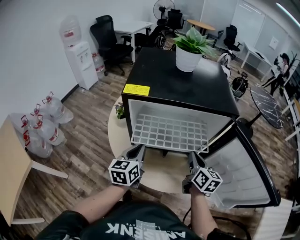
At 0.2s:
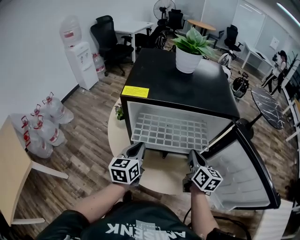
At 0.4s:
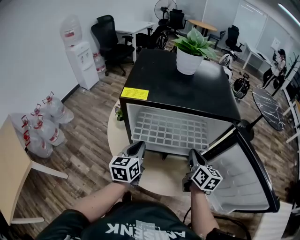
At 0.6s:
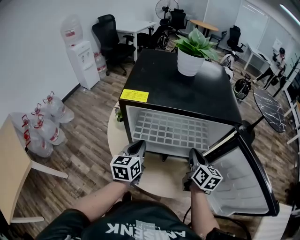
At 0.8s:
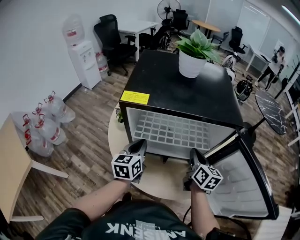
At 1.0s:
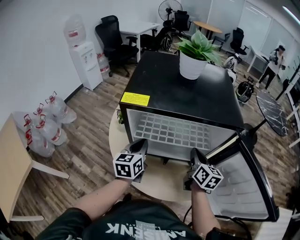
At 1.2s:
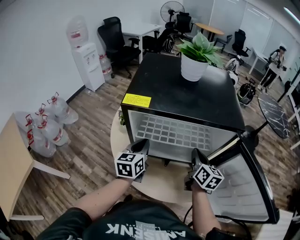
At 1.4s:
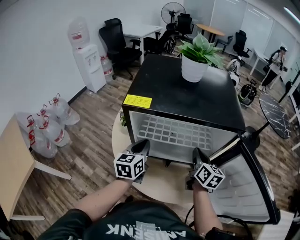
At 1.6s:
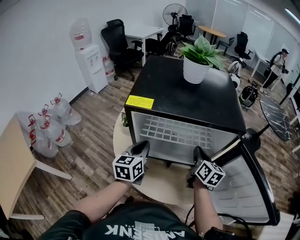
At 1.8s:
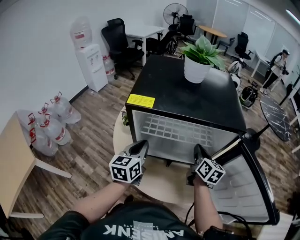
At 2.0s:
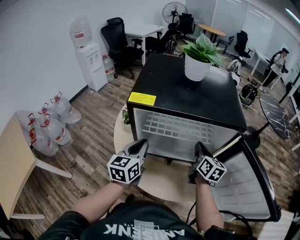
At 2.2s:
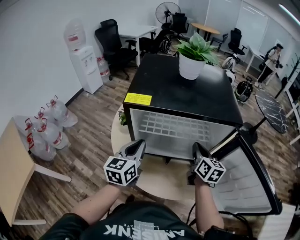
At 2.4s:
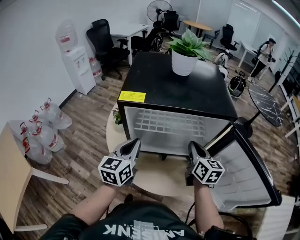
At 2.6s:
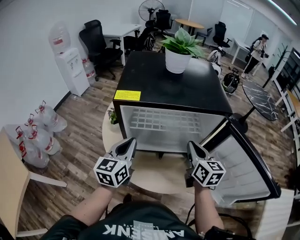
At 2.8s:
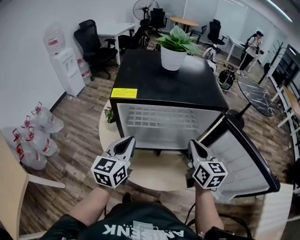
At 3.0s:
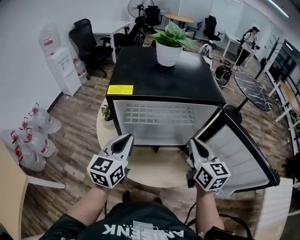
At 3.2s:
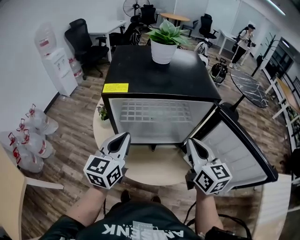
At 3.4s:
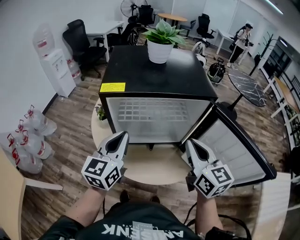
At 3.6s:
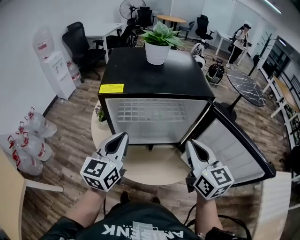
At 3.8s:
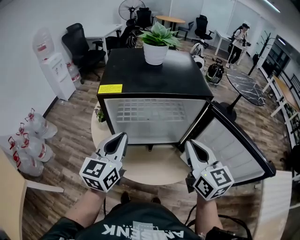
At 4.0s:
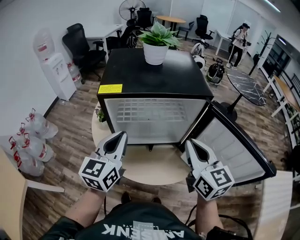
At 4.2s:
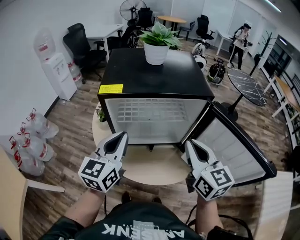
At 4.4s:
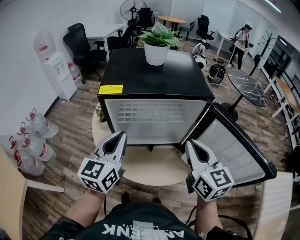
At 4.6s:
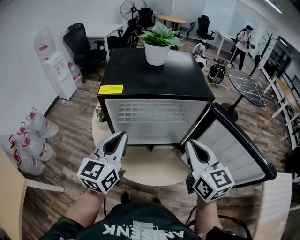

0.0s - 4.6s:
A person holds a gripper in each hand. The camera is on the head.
0.0s - 1.6s: The grippers both shift forward by roughly 10 cm.
1.6s - 3.0s: The right gripper goes roughly 15 cm backward and upward. Meanwhile the left gripper heads upward and backward, covering approximately 10 cm.
3.0s - 4.6s: The left gripper moves upward, about 5 cm. Meanwhile the right gripper heads upward and backward, covering approximately 10 cm.

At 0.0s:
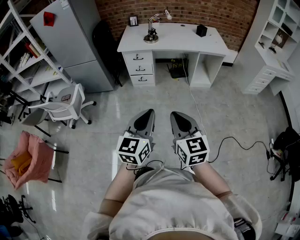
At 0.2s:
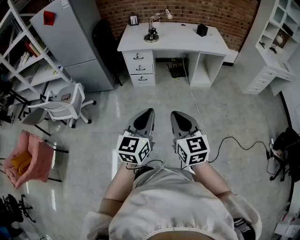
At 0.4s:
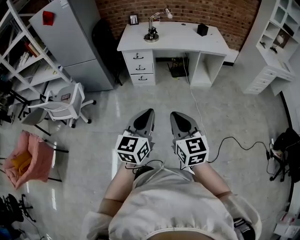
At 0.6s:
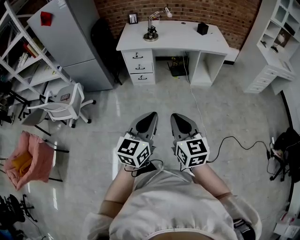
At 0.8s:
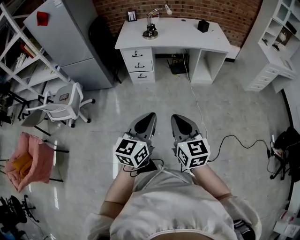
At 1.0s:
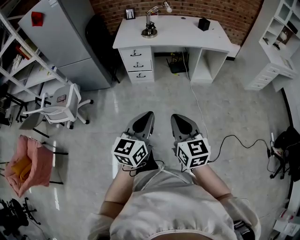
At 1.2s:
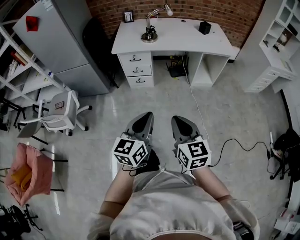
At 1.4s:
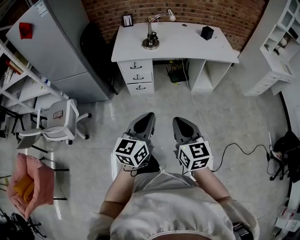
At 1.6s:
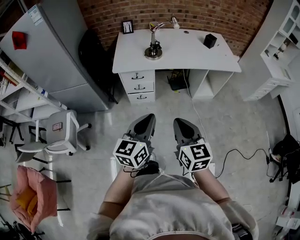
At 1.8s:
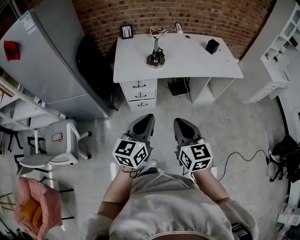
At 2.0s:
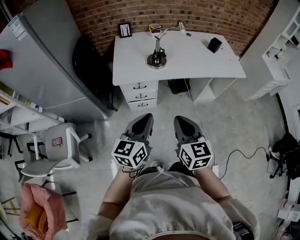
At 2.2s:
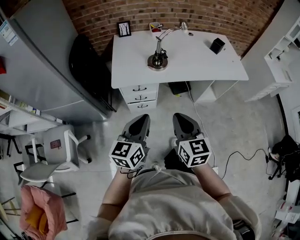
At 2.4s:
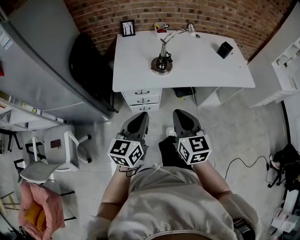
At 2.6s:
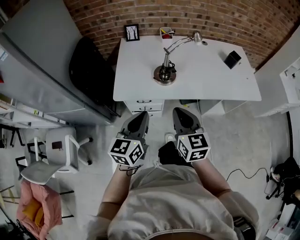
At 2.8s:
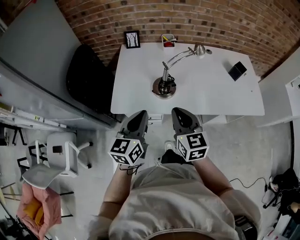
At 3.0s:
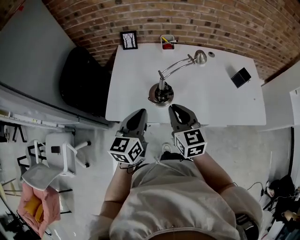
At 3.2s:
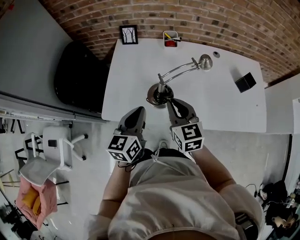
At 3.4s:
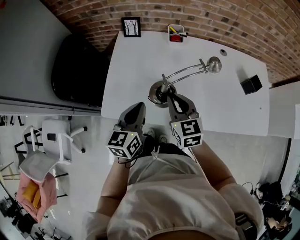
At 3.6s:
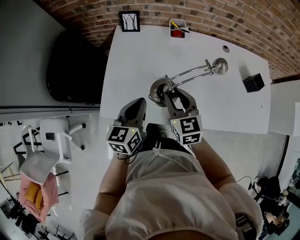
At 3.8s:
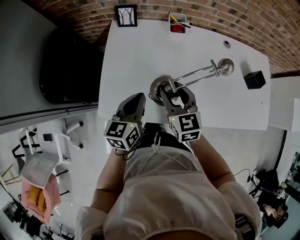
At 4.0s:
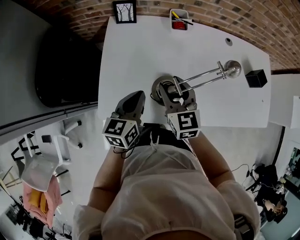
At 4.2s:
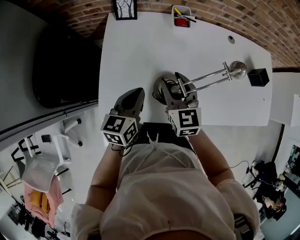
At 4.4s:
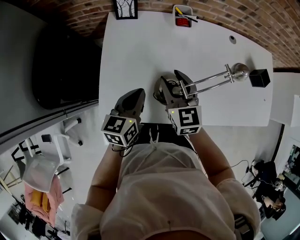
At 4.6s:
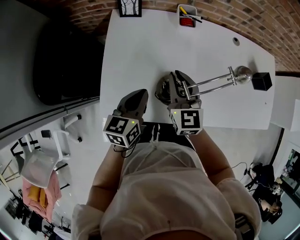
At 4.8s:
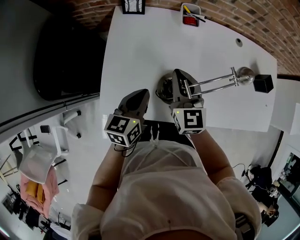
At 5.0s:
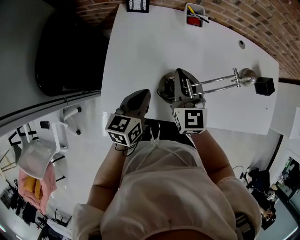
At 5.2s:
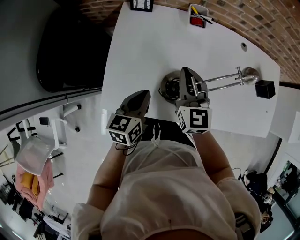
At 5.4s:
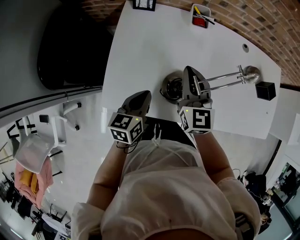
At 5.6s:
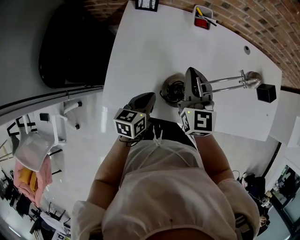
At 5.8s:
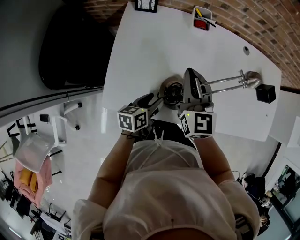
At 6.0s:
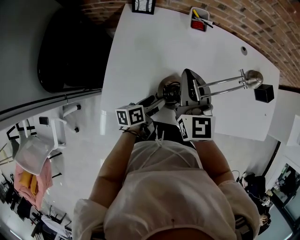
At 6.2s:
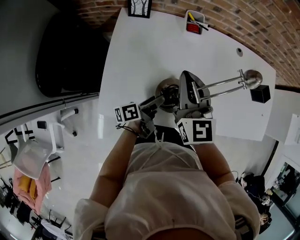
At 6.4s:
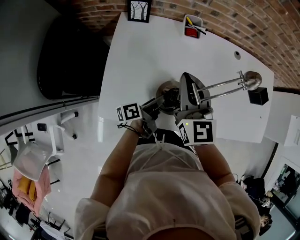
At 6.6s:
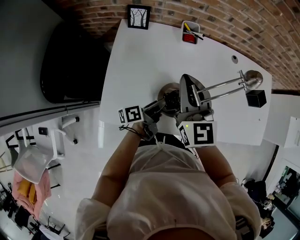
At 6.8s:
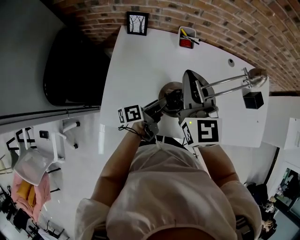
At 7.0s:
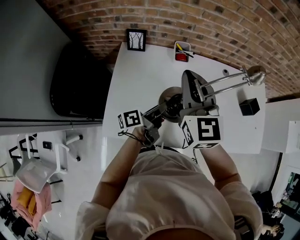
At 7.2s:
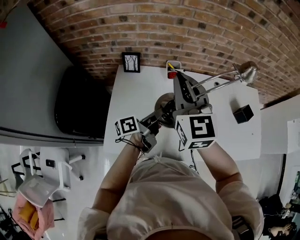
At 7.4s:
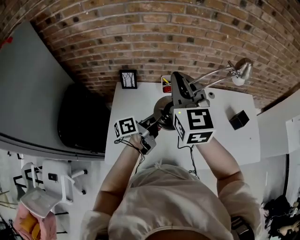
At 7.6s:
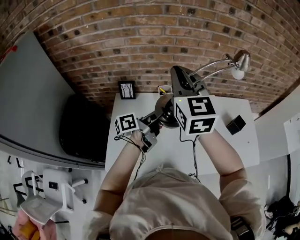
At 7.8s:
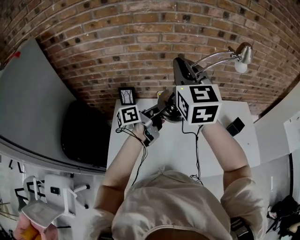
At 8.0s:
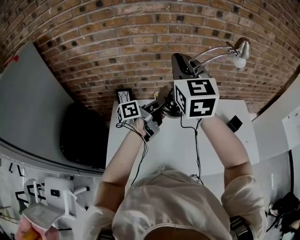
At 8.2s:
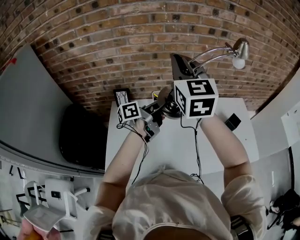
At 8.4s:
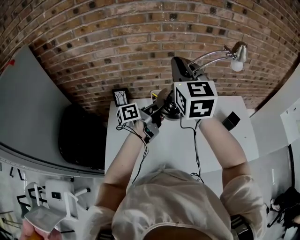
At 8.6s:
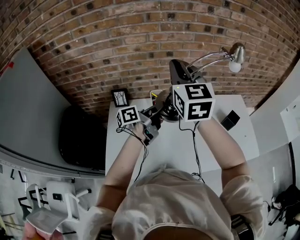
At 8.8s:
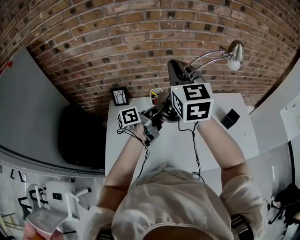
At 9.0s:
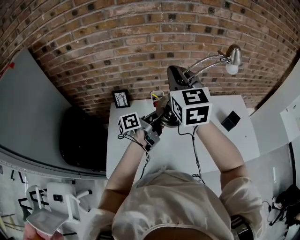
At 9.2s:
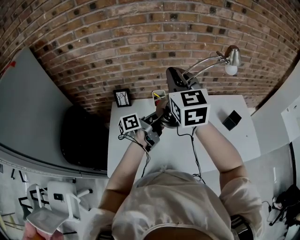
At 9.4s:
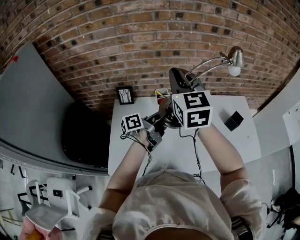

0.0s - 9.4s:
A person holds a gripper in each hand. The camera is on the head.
0.0s - 1.6s: The grippers both shift forward by about 30 cm.
1.6s - 3.2s: The two grippers travel together, forward, about 60 cm.
3.2s - 4.8s: The left gripper shifts about 15 cm downward and forward, while the right gripper is displaced forward and to the left by some 15 cm, and opens, then closes again.
4.8s - 6.2s: The right gripper moves upward, roughly 5 cm. Meanwhile the left gripper goes about 10 cm downward and to the right, rolls counterclockwise, seen from behind, by roughly 50 degrees, and opens.
6.2s - 7.8s: The left gripper heads upward and forward, covering roughly 35 cm, changes its angle by about 20 degrees, and closes its fingers. The right gripper is displaced upward by some 30 cm.
7.8s - 9.4s: The left gripper changes place by some 5 cm.

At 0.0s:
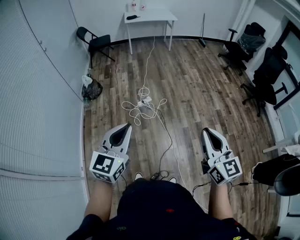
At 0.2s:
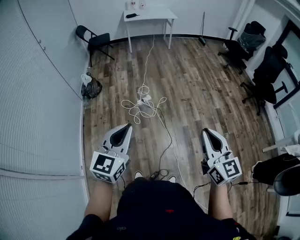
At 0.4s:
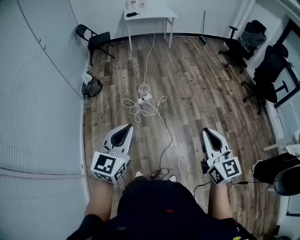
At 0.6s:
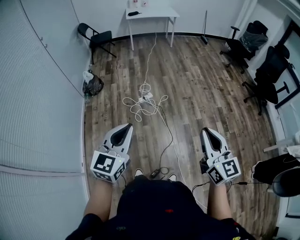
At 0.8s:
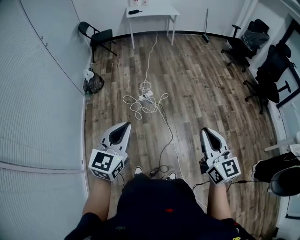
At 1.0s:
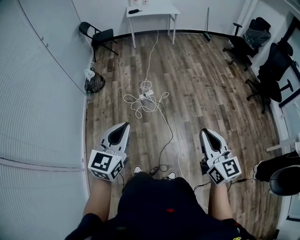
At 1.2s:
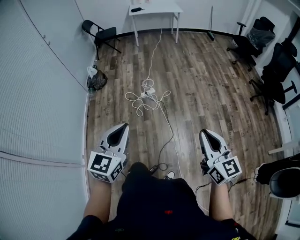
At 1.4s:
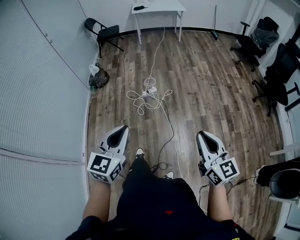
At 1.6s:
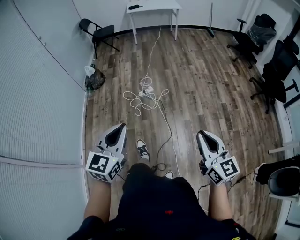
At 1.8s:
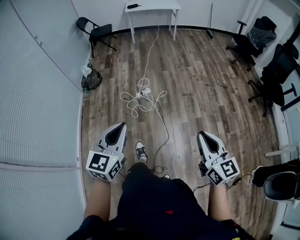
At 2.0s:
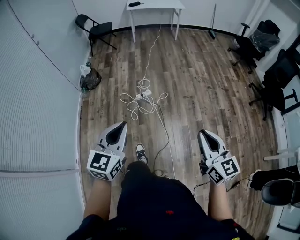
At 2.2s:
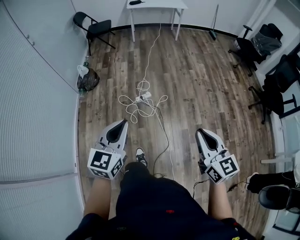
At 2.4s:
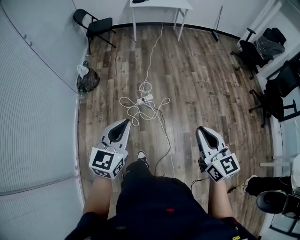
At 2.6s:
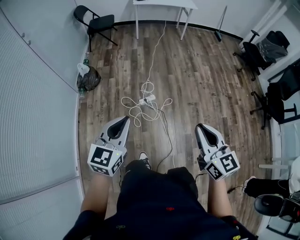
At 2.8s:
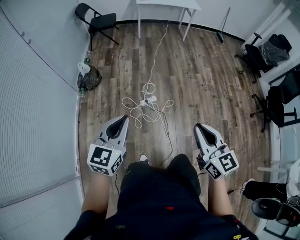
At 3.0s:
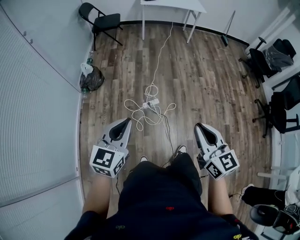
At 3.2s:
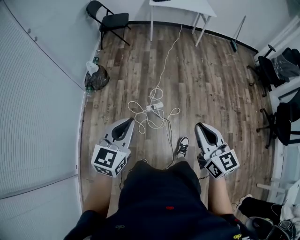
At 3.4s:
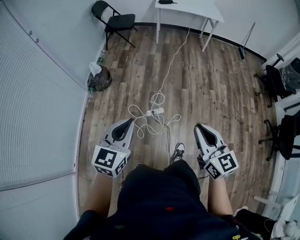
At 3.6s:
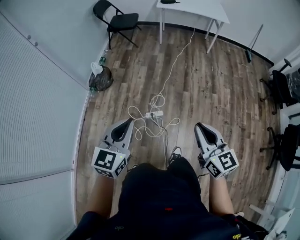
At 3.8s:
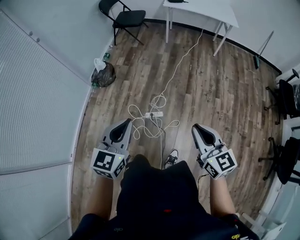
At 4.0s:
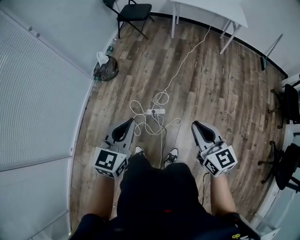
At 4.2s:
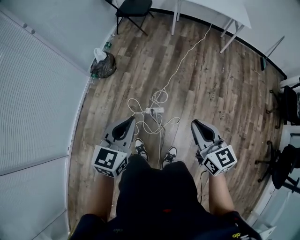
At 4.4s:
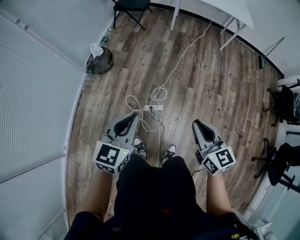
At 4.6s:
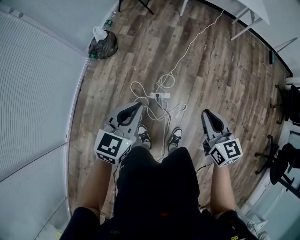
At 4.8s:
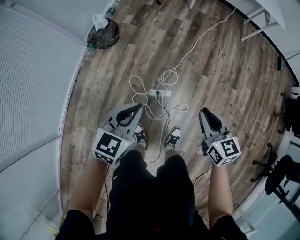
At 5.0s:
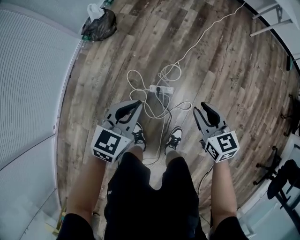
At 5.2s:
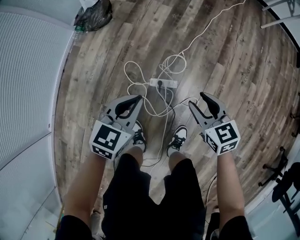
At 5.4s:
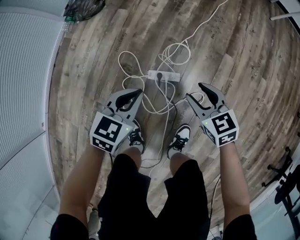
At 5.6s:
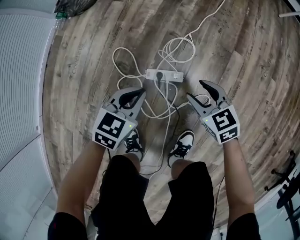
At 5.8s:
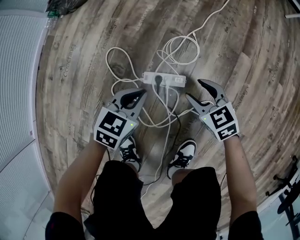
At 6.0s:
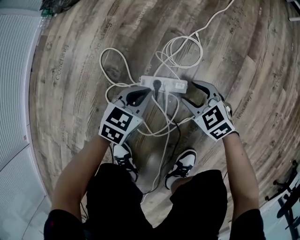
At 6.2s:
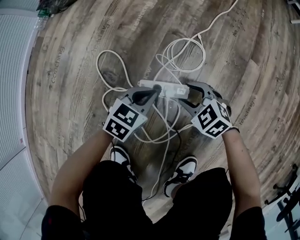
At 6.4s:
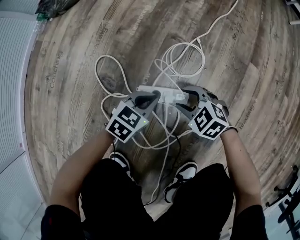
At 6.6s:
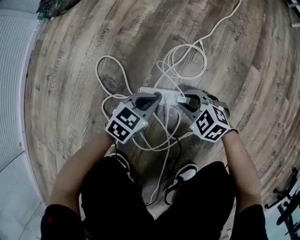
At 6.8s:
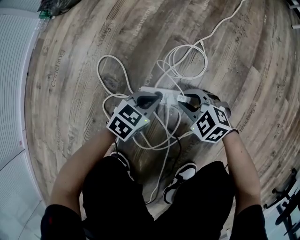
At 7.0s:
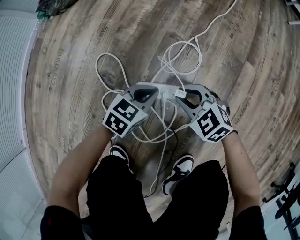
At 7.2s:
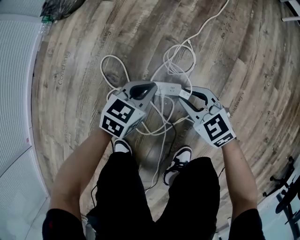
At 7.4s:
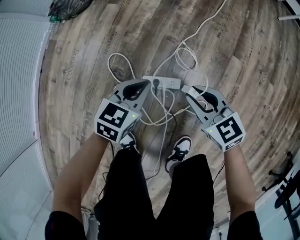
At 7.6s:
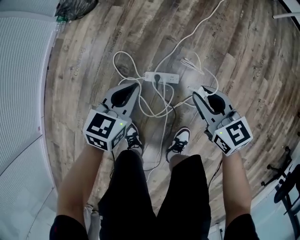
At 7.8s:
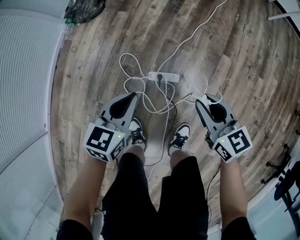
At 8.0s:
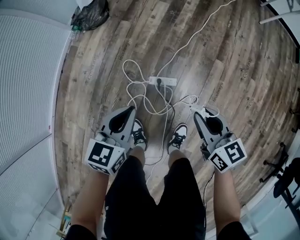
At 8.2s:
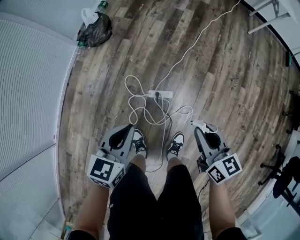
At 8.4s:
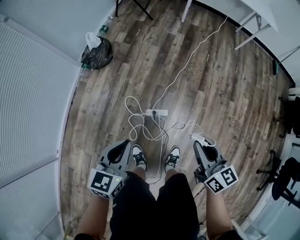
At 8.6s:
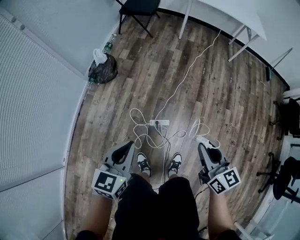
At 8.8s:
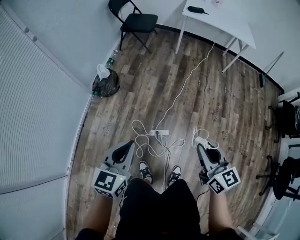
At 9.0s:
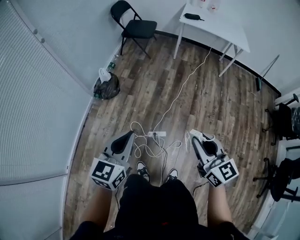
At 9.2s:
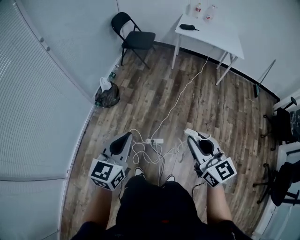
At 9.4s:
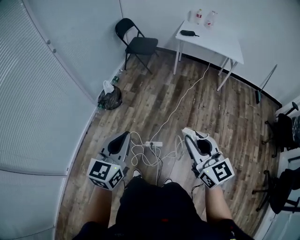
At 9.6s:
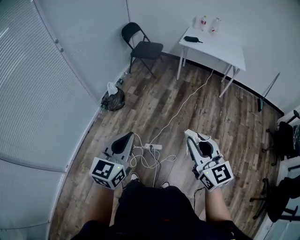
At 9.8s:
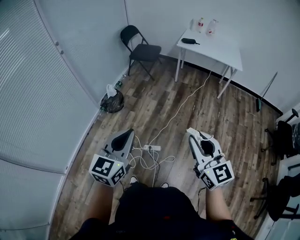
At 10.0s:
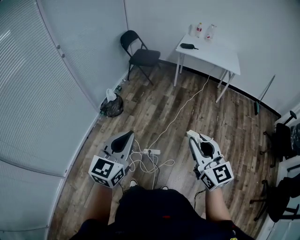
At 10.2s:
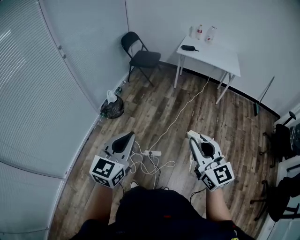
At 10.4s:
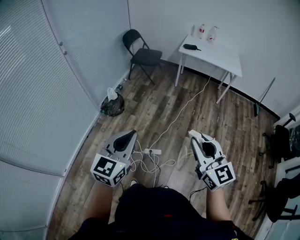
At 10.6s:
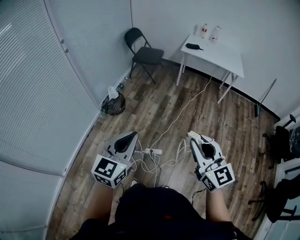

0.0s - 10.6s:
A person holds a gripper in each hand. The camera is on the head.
0.0s - 1.6s: Both grippers move to the right and downward, approximately 10 cm.
1.6s - 3.0s: Both grippers are carried forward and to the left, some 40 cm.
3.0s - 4.6s: The left gripper is displaced forward, downward and to the right by some 35 cm. The right gripper moves forward and downward, some 40 cm, and turns by some 20 degrees.
4.6s - 6.0s: The two grippers go about 80 cm downward. The left gripper rotates about 20 degrees, while the right gripper changes its angle by some 50 degrees, and opens its fingers.
6.0s - 7.6s: Both grippers travel together upward, roughly 30 cm. The right gripper changes its angle by about 30 degrees, and closes.
7.6s - 9.0s: The grippers both shift upward by about 70 cm. The right gripper swivels some 30 degrees. The left gripper rotates some 30 degrees.
9.0s - 10.6s: The two grippers go roughly 15 cm upward, backward and to the right.
